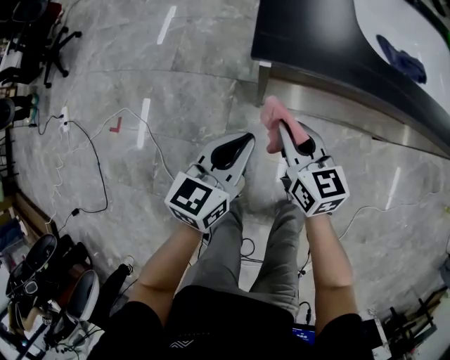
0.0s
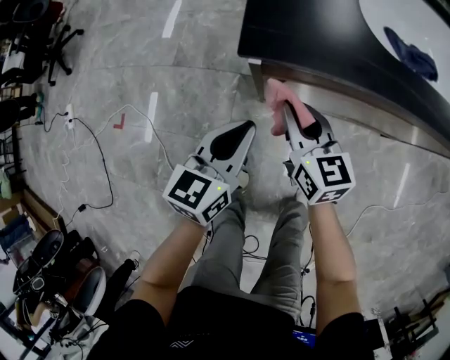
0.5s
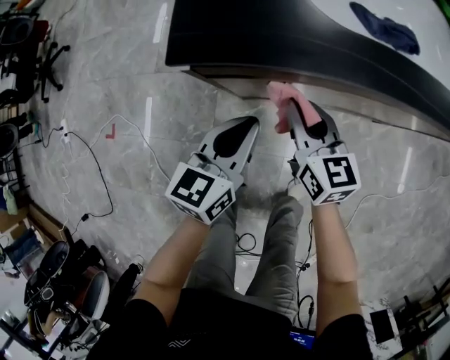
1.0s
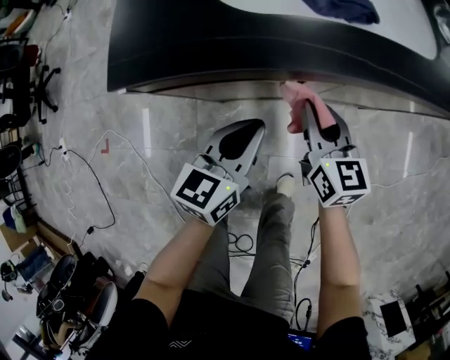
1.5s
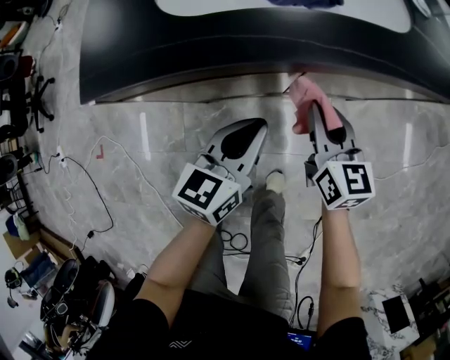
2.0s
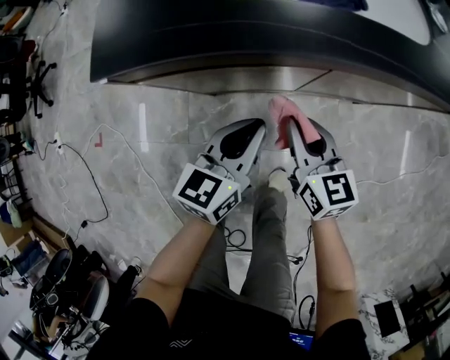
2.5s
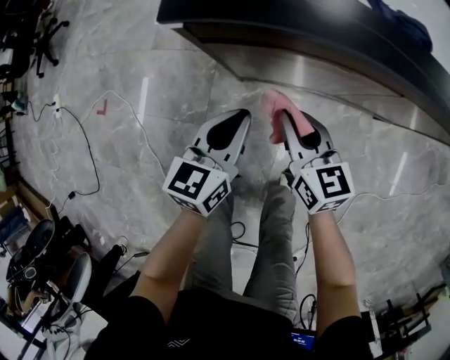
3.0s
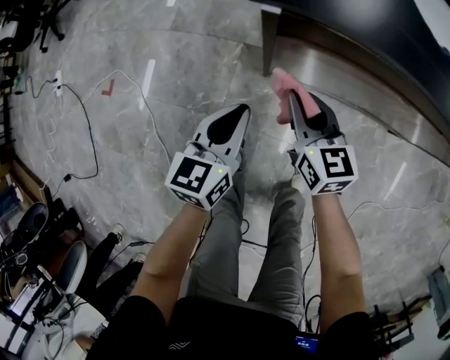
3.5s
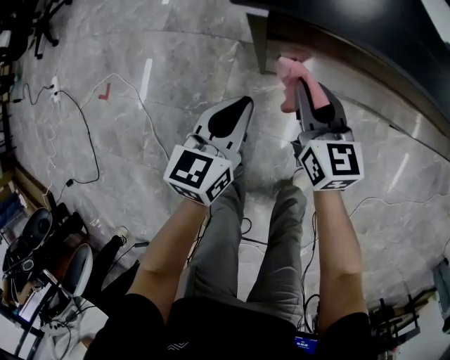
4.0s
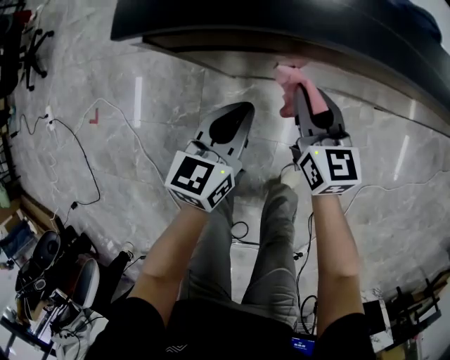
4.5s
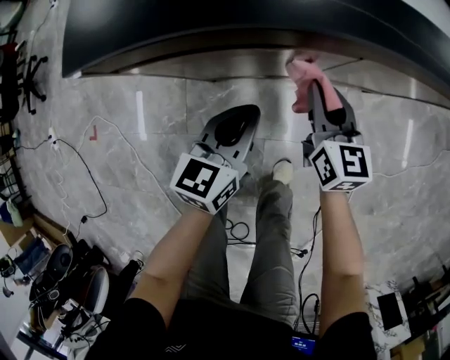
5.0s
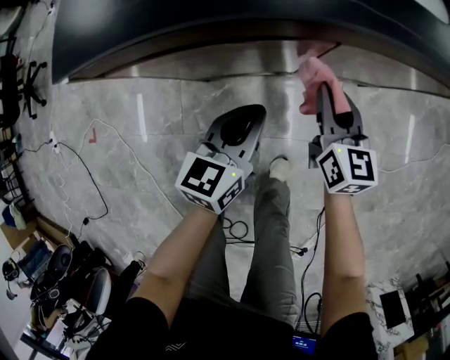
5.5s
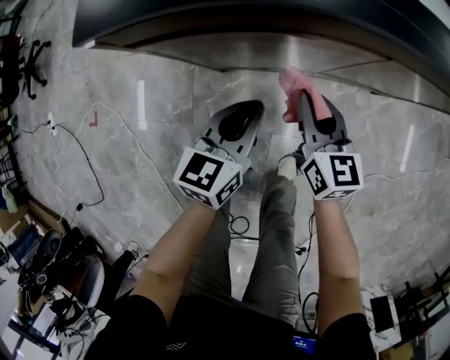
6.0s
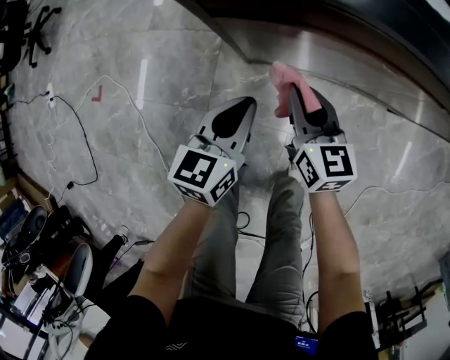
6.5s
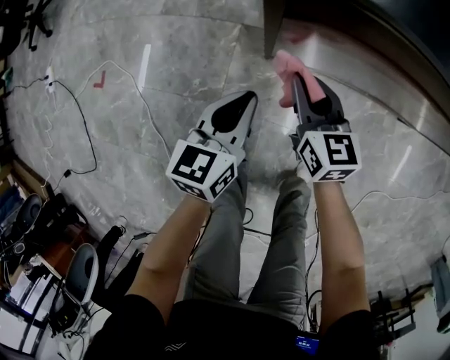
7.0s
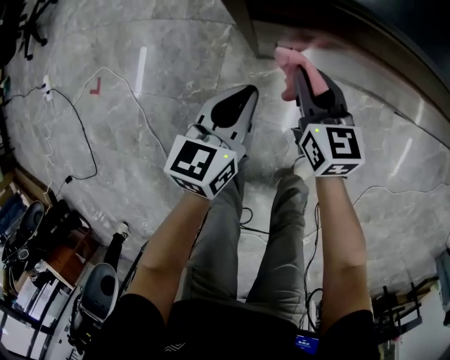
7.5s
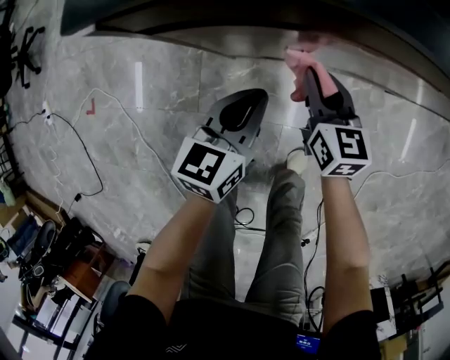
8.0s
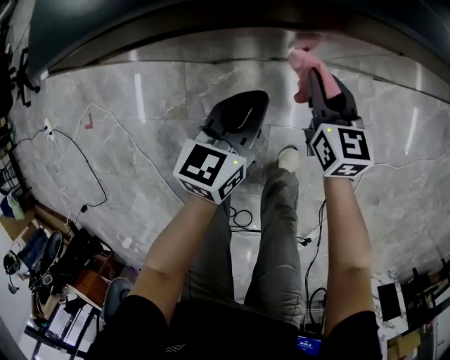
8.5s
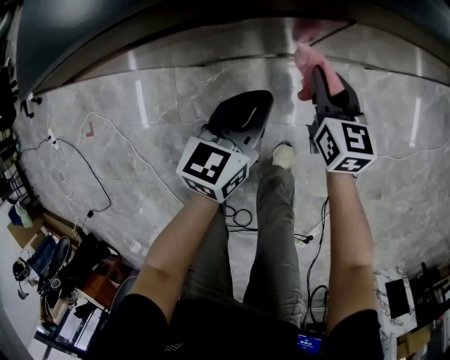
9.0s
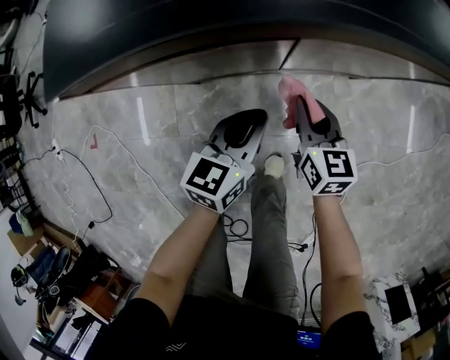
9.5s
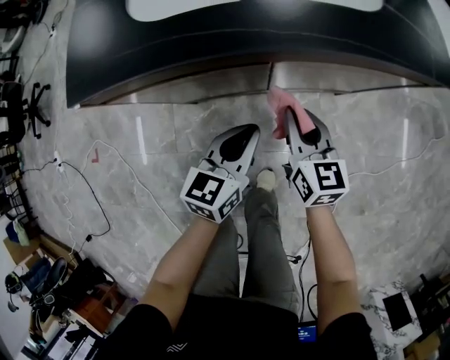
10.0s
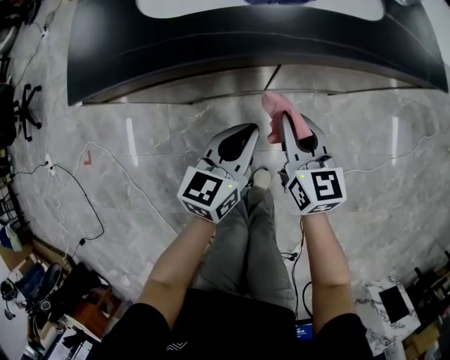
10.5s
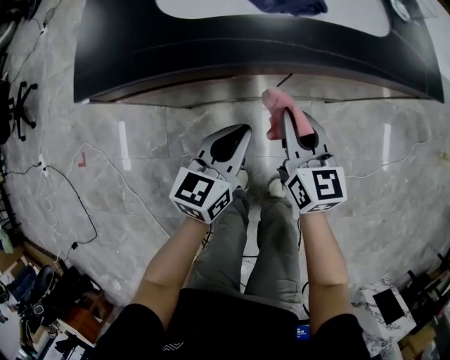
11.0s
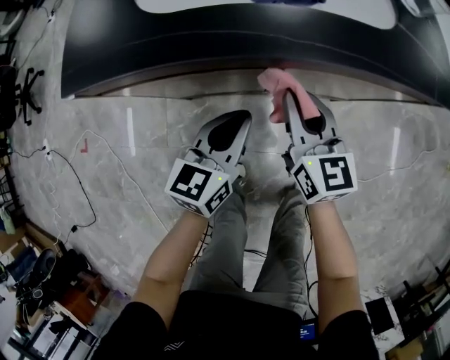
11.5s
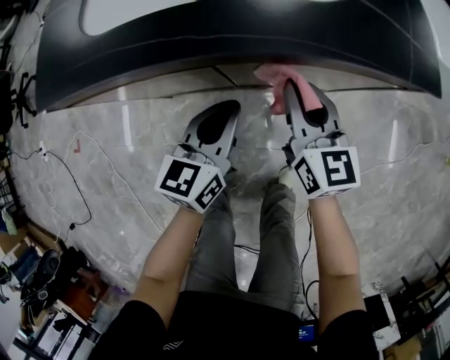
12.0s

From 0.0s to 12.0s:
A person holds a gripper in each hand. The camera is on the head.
From 0.0s to 2.0s: Both grippers move to the right, roughly 30 cm. The right gripper rotates some 20 degrees.
From 2.0s to 4.0s: Both grippers travel together to the left, about 25 cm.
From 4.0s to 6.0s: The two grippers go roughly 20 cm to the right.
From 6.0s to 8.0s: The left gripper travels to the left and back again, about 20 cm each way. Meanwhile the right gripper heads downward and forward, covering roughly 10 cm, and reaches roughly 25 cm to the left, then returns.
From 8.0s to 10.0s: The left gripper travels to the right by approximately 20 cm. The right gripper moves to the right and upward, roughly 25 cm.
From 10.0s to 12.0s: The left gripper heads forward and to the right, covering some 10 cm. Meanwhile the right gripper shifts some 10 cm to the right and forward.

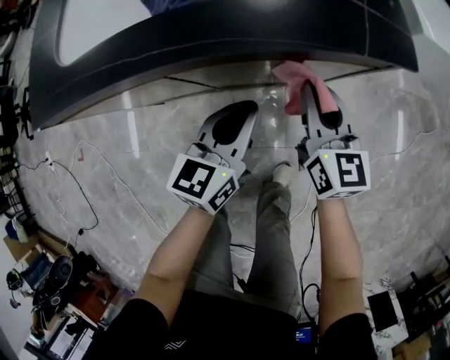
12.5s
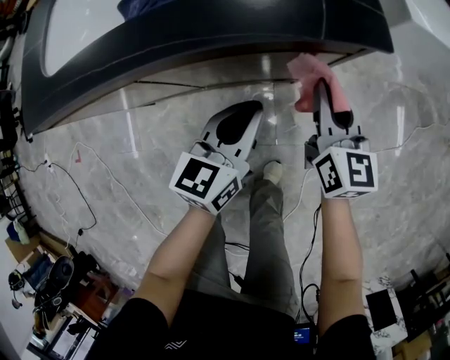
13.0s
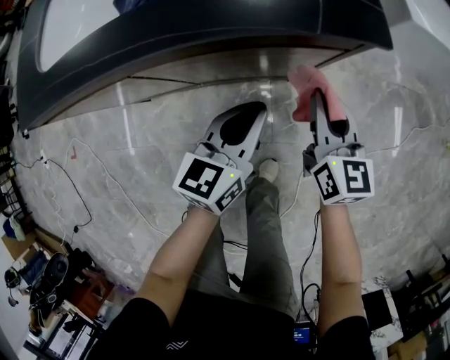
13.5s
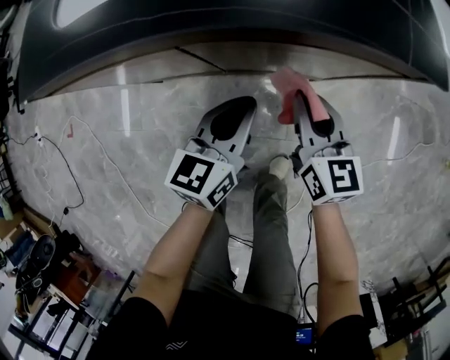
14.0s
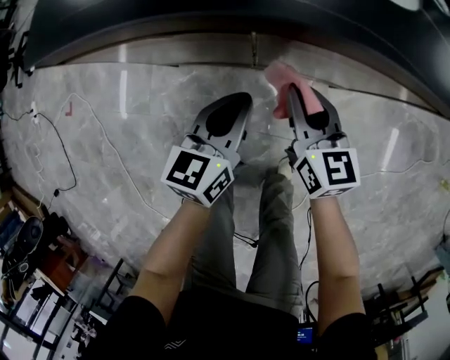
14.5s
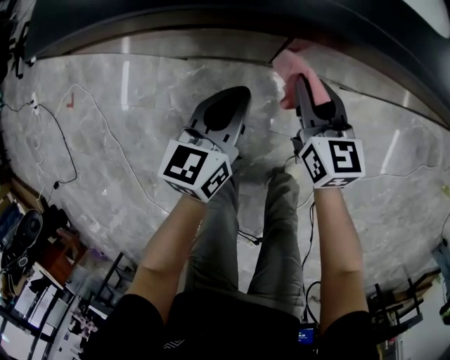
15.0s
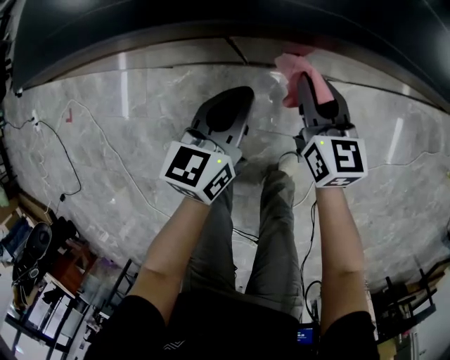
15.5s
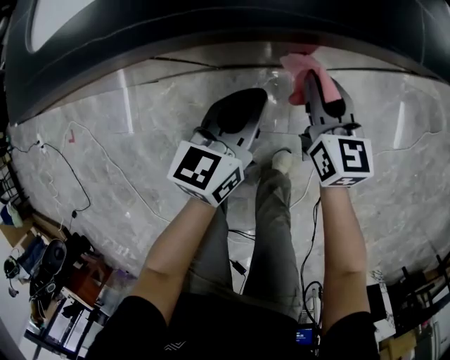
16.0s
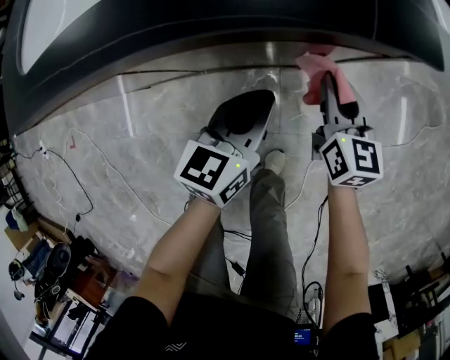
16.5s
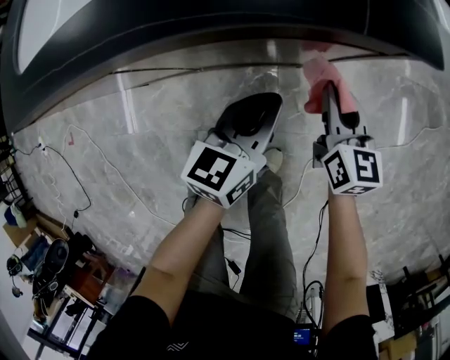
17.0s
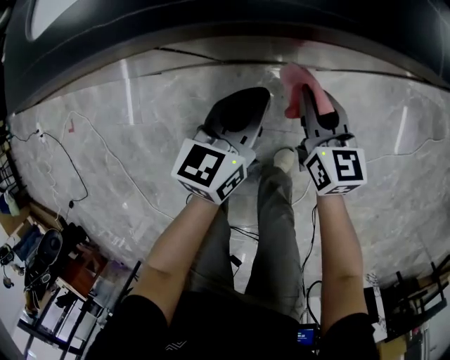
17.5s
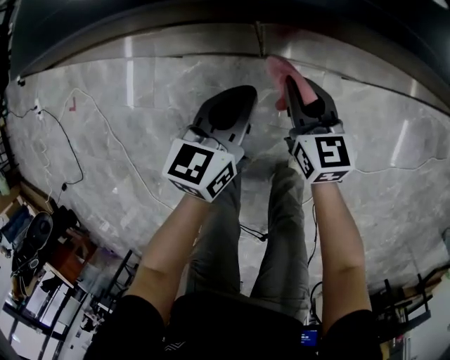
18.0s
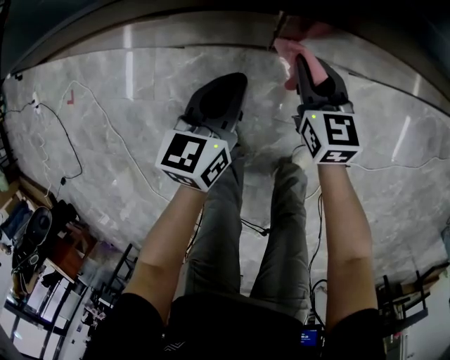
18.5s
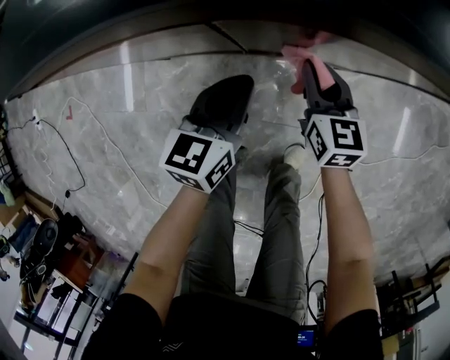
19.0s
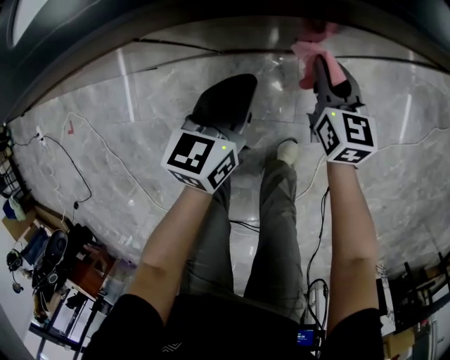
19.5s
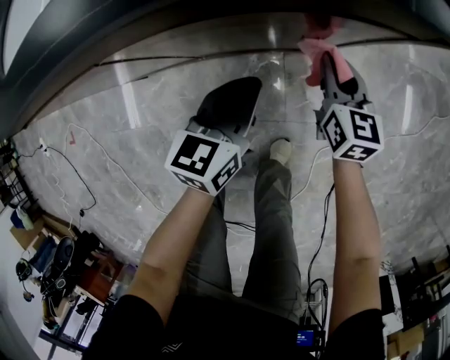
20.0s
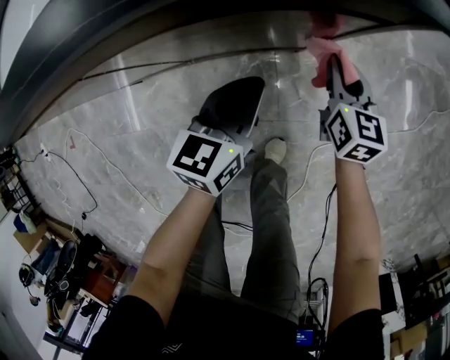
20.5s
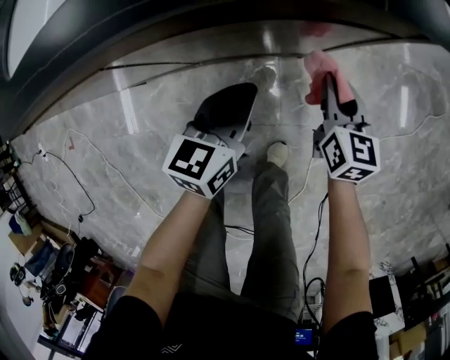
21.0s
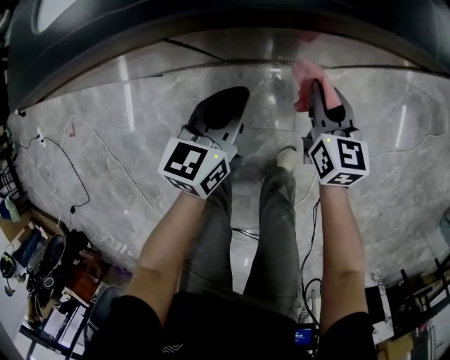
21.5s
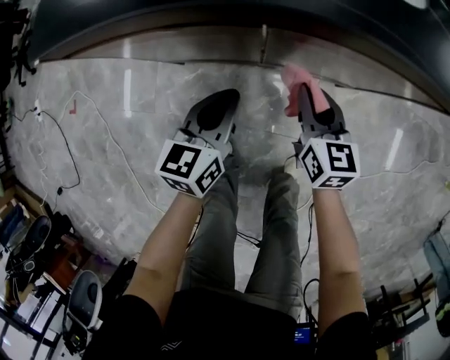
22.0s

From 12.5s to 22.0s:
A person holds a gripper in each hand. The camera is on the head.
From 12.5s to 14.5s: Both grippers travel together to the left, some 15 cm.
From 14.5s to 16.5s: Both grippers move to the right, roughly 25 cm. The right gripper swivels roughly 20 degrees.
From 16.5s to 18.0s: The two grippers go roughly 25 cm to the left. The right gripper rotates some 20 degrees.
From 18.0s to 20.0s: Both grippers move to the right, roughly 25 cm. The right gripper swivels approximately 20 degrees.
From 20.0s to 22.0s: The two grippers go some 25 cm to the left.

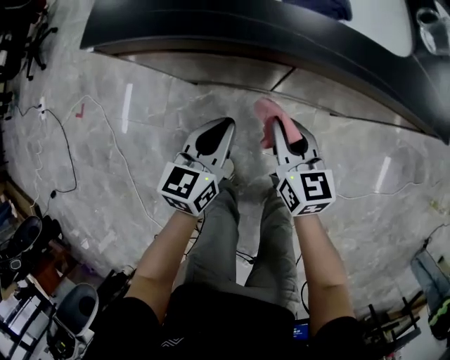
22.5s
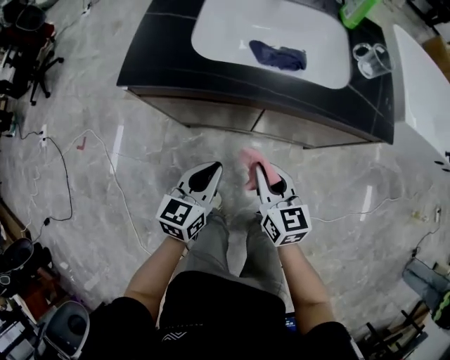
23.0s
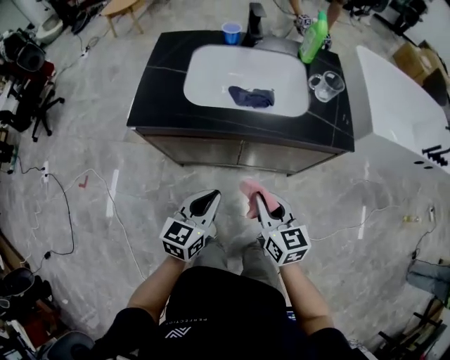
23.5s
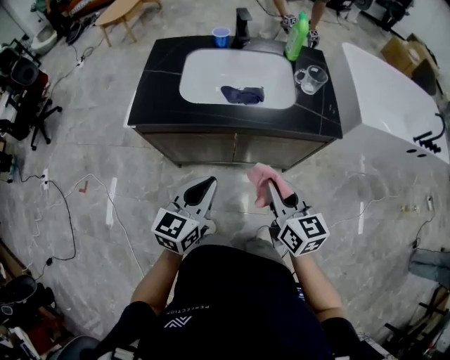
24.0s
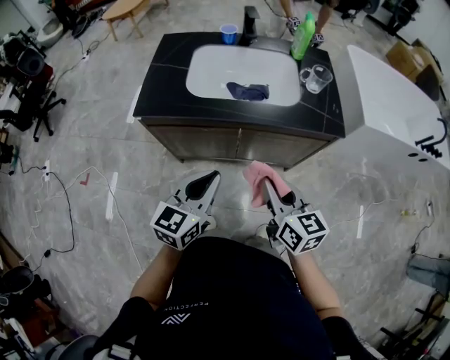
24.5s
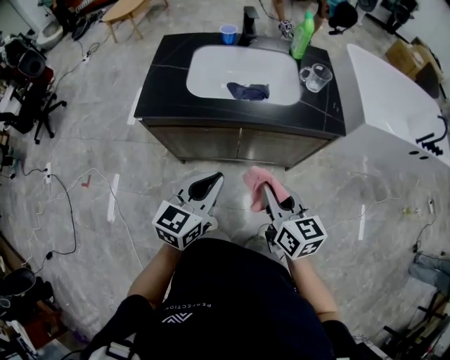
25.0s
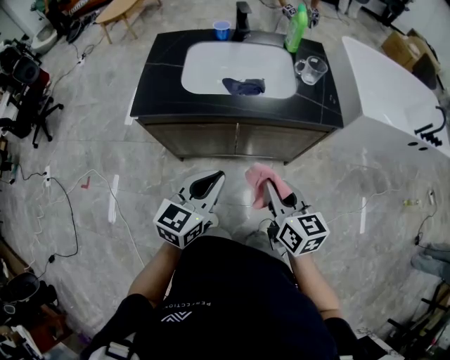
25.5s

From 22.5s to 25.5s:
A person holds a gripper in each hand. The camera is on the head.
From 22.5s to 24.0s: Both grippers move upward, roughly 25 cm.
From 24.0s to 25.5s: The grippers make only small movements.

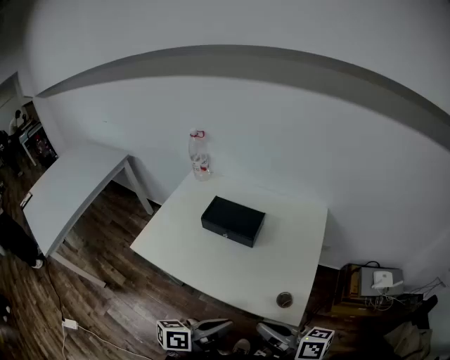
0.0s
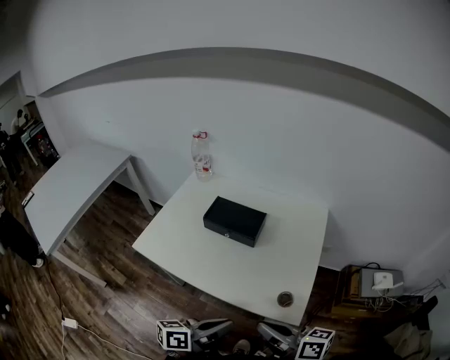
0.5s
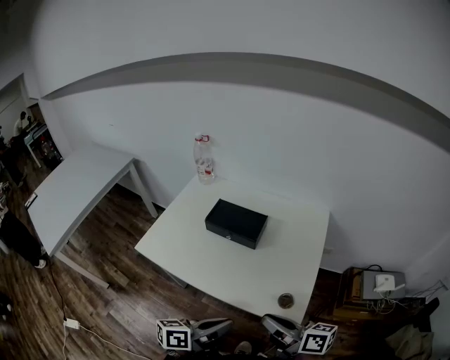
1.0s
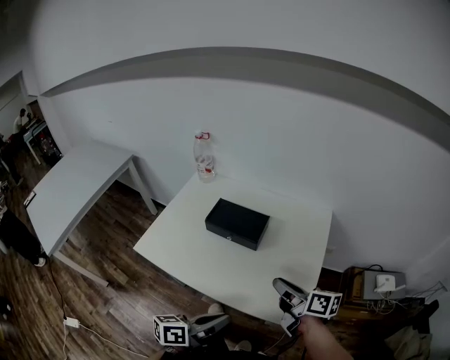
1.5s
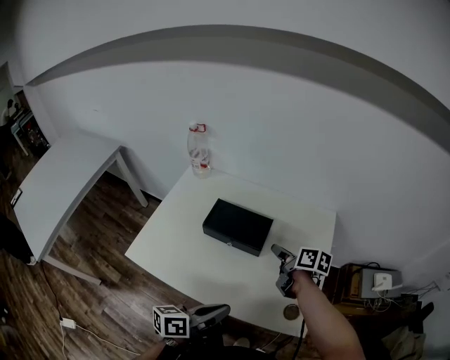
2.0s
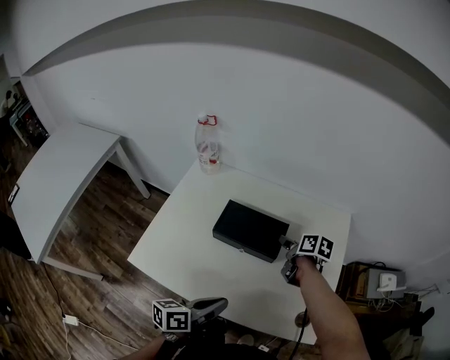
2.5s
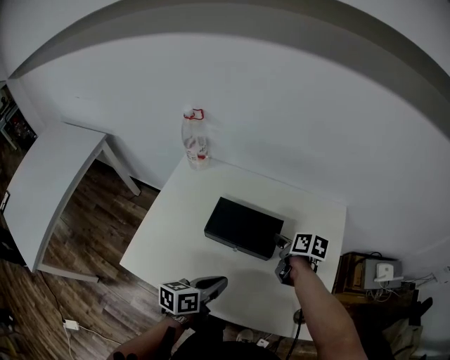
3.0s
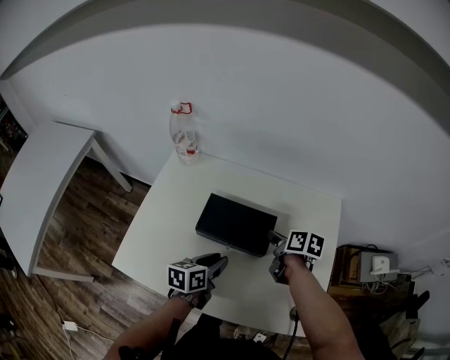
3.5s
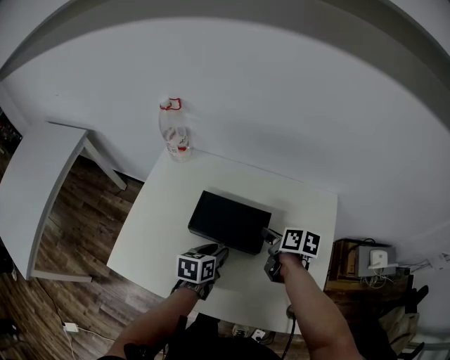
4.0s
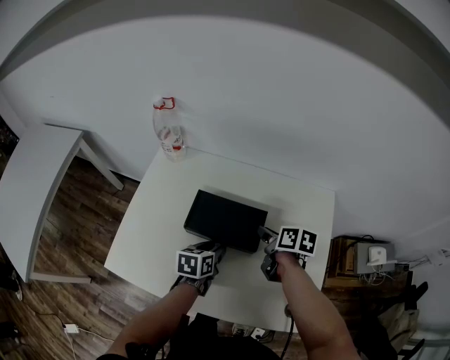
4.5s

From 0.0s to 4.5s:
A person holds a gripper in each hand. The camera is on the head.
From 0.0s to 2.0s: The right gripper moves forward, some 30 cm, changes its angle by roughly 30 degrees, and opens its fingers. The left gripper travels forward by some 10 cm.
From 2.0s to 4.5s: The right gripper goes approximately 10 cm forward and downward. The left gripper moves forward and downward, roughly 25 cm, tips its fingers downward by some 30 degrees, and opens its fingers.
